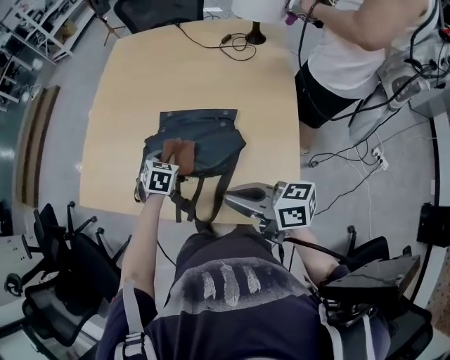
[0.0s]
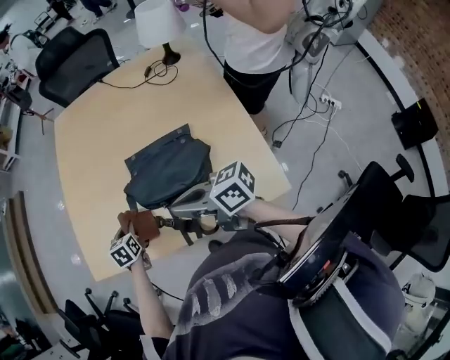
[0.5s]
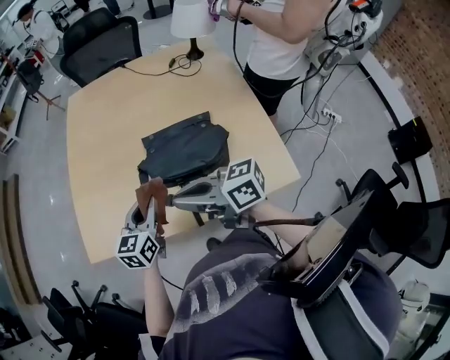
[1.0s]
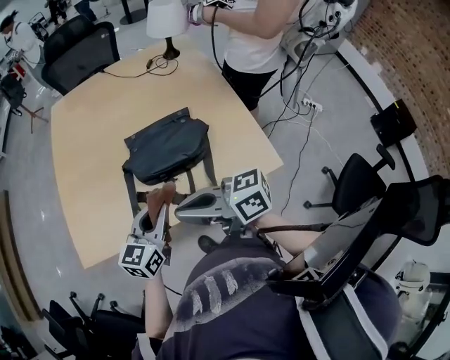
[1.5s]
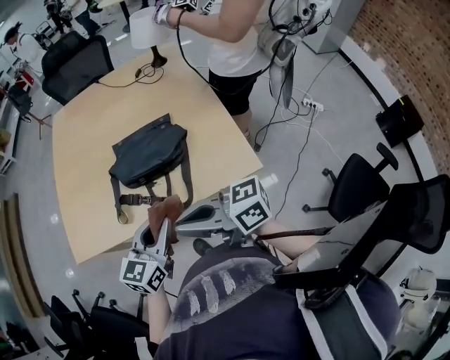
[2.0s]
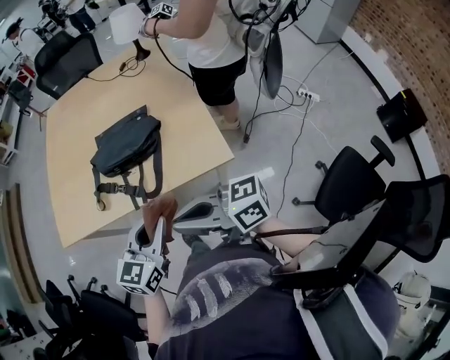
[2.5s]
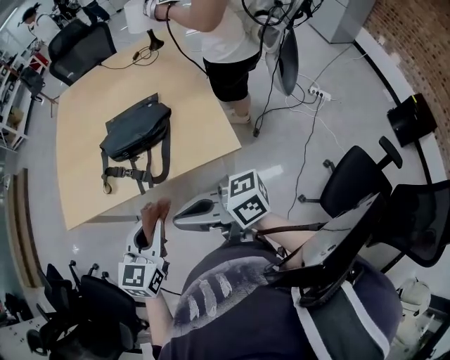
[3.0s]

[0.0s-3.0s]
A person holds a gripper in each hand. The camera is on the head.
0.0s to 1.5s: The right gripper ends up about 20 cm from where it was. Meanwhile the left gripper moves approximately 25 cm, and angles its fingers upward, by roughly 40 degrees.
1.5s to 3.0s: The left gripper is displaced backward by approximately 25 cm. The right gripper shifts approximately 25 cm backward and to the right.

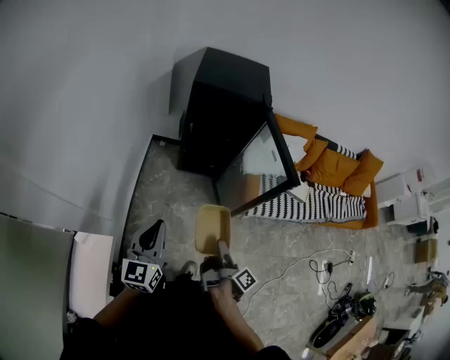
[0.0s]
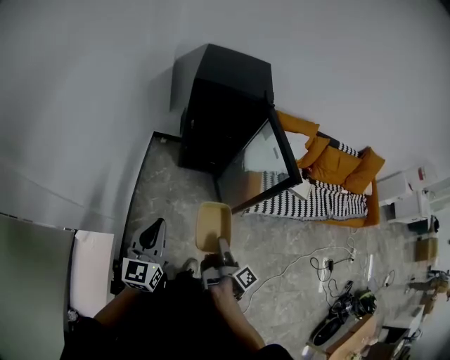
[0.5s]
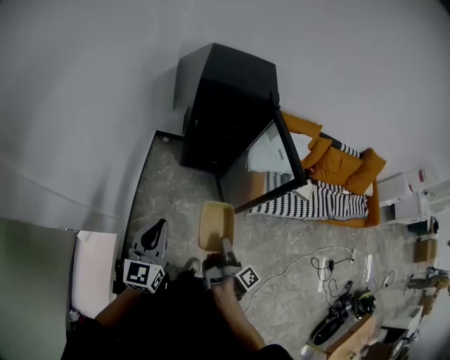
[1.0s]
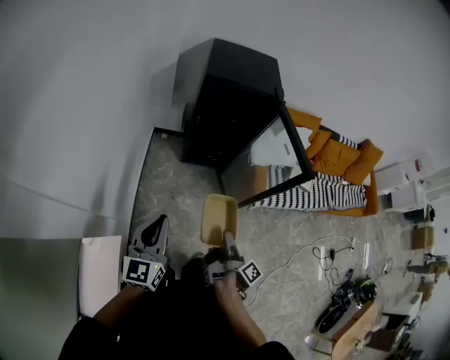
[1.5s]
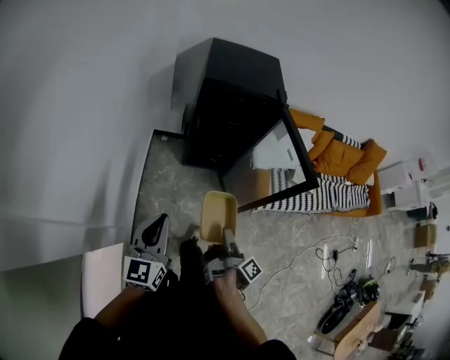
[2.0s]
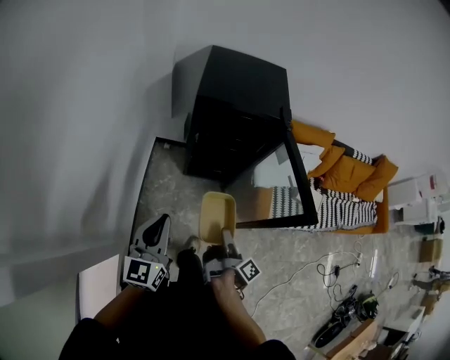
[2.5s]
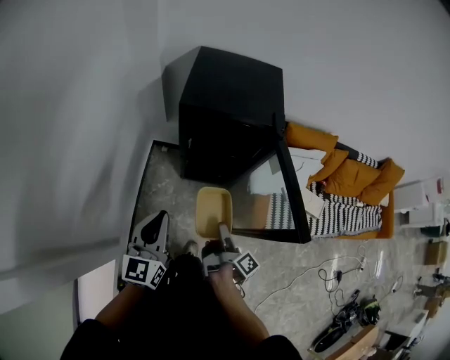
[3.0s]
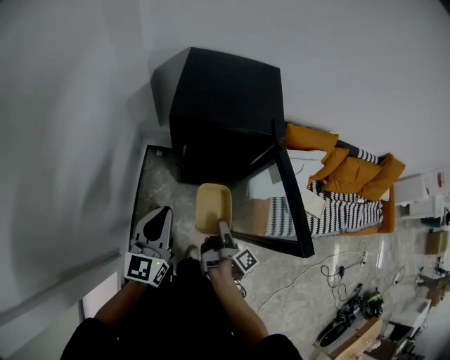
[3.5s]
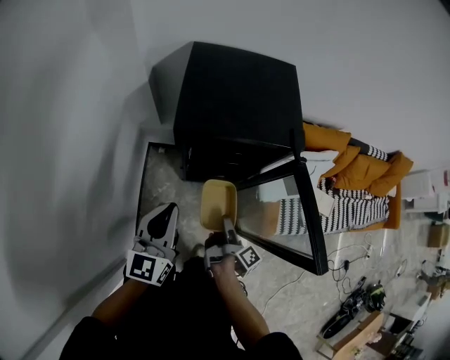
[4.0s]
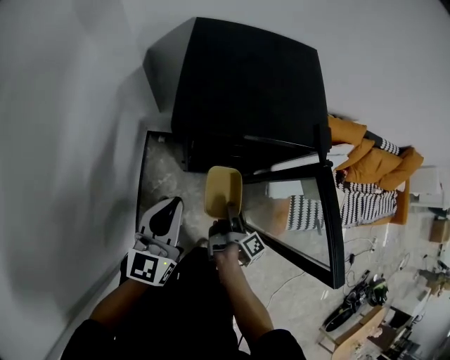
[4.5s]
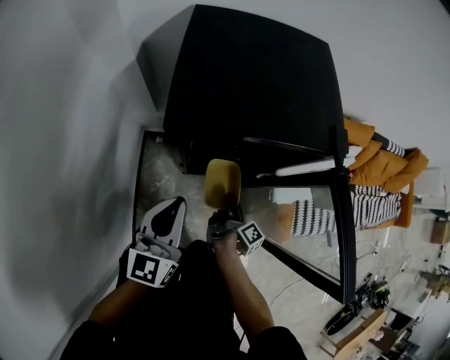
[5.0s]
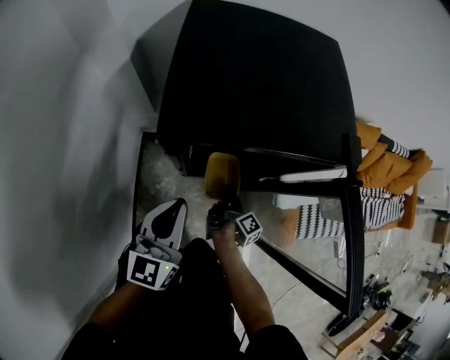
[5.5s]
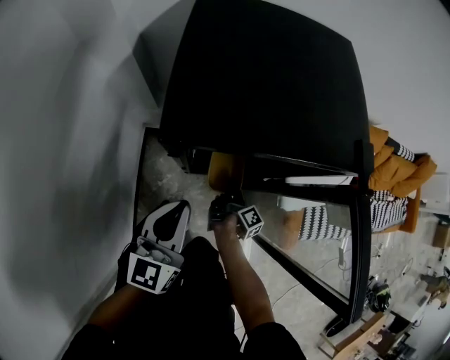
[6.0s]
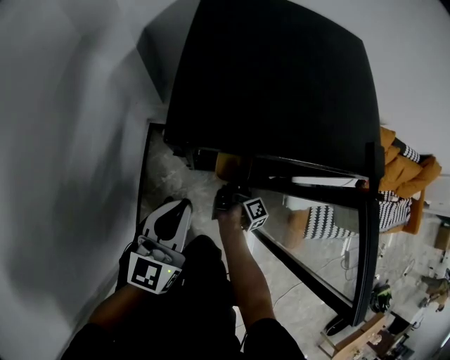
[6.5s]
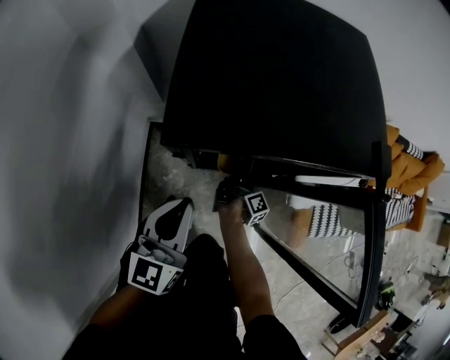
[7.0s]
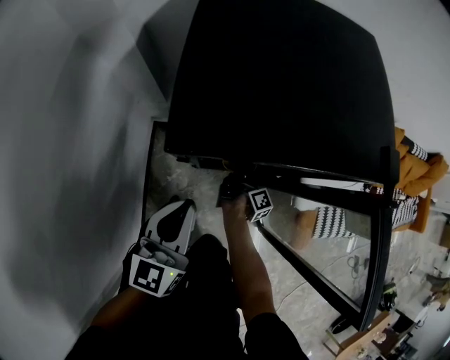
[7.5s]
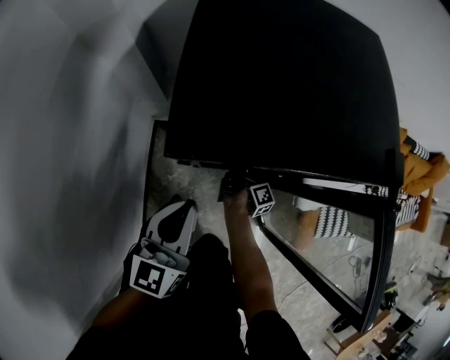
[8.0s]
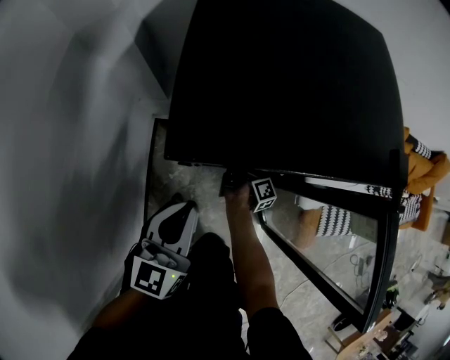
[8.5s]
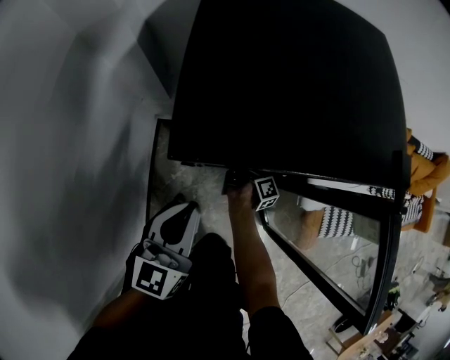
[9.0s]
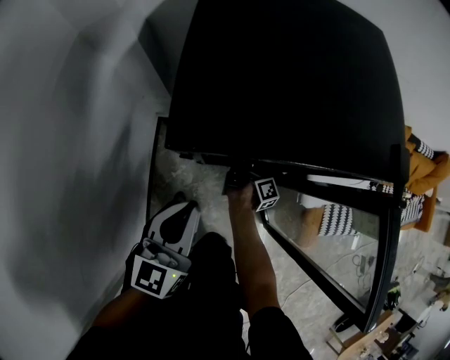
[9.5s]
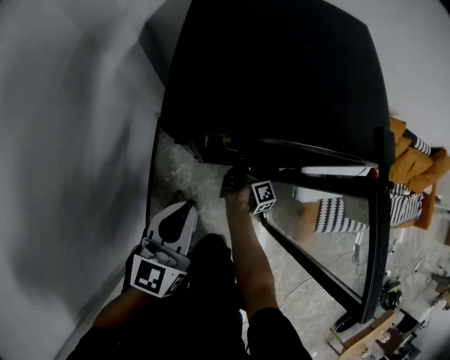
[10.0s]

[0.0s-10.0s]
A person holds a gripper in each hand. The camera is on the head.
0.0s to 2.0s: The left gripper changes place by roughly 10 cm.
2.0s to 4.0s: The left gripper ends up approximately 40 cm from where it was.
4.0s to 6.0s: The left gripper shifts some 20 cm downward.

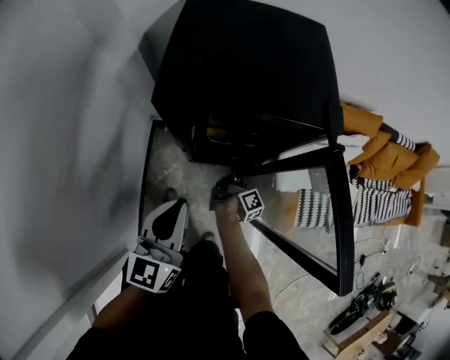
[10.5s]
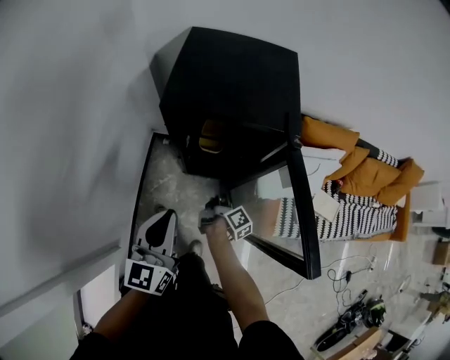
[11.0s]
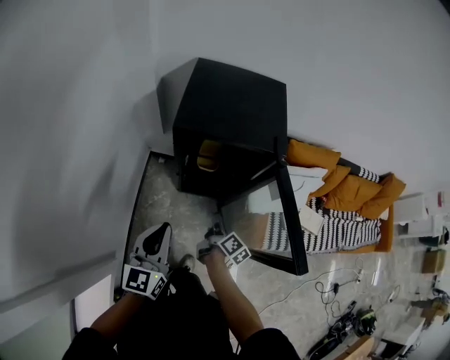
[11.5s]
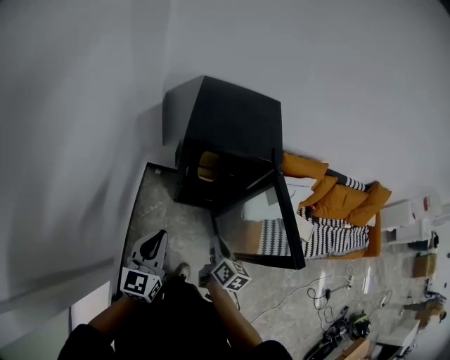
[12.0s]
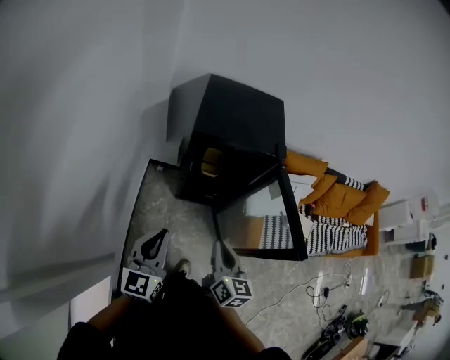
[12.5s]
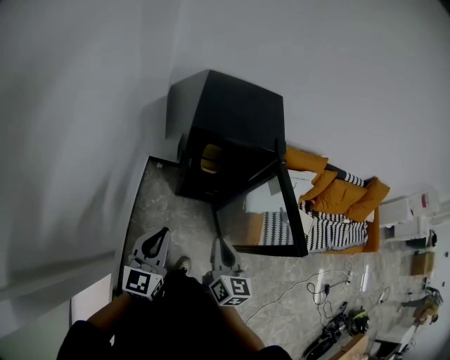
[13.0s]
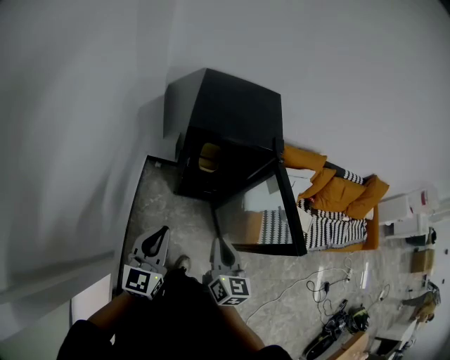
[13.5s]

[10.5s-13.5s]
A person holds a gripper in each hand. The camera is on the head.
10.5s to 12.0s: The left gripper shifts by approximately 20 cm.

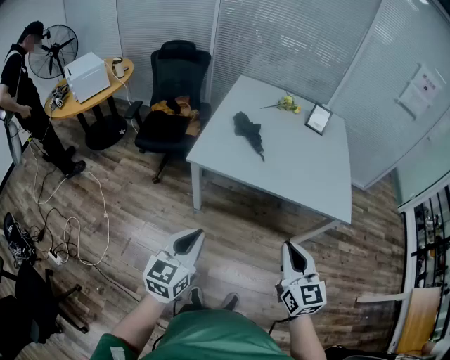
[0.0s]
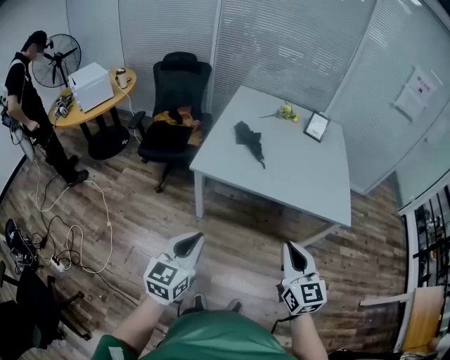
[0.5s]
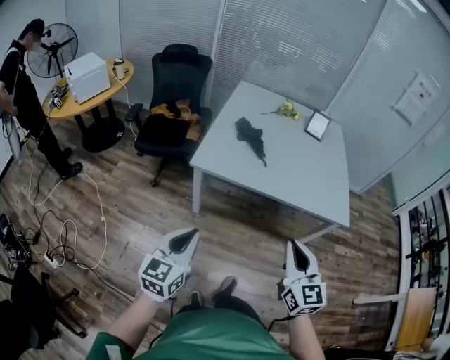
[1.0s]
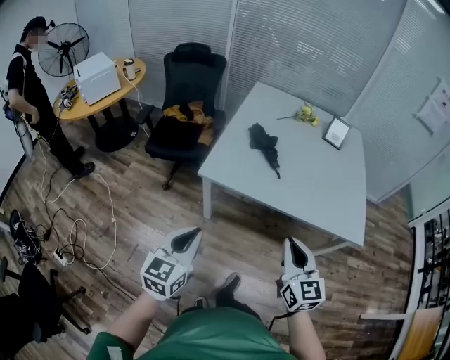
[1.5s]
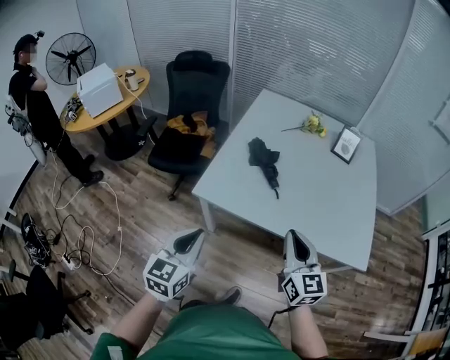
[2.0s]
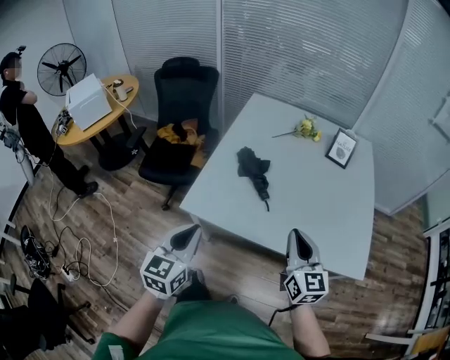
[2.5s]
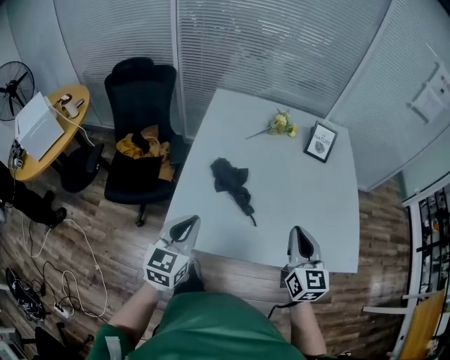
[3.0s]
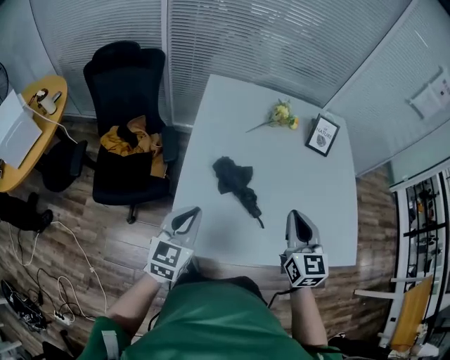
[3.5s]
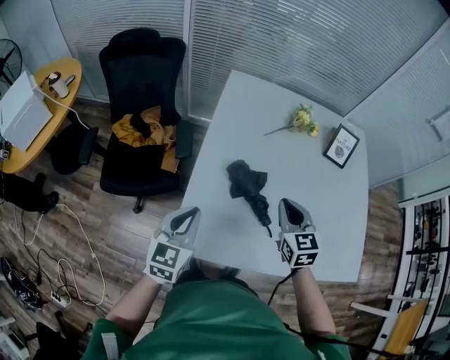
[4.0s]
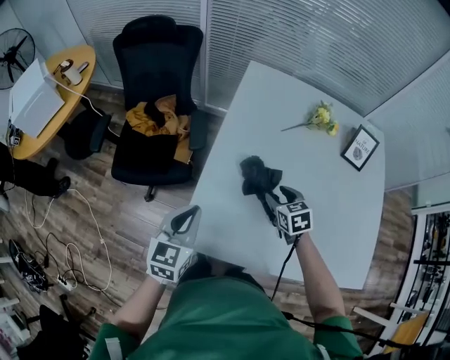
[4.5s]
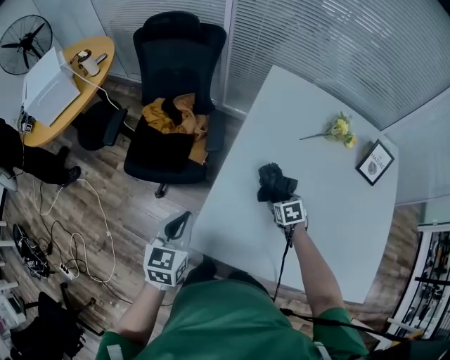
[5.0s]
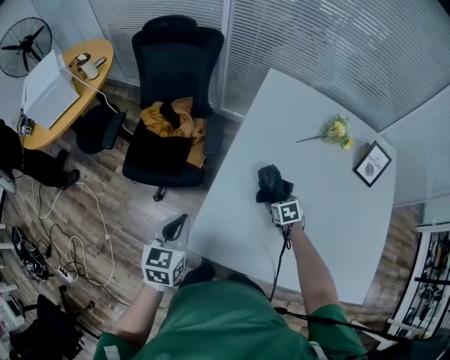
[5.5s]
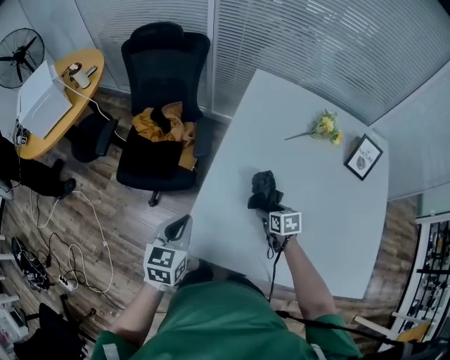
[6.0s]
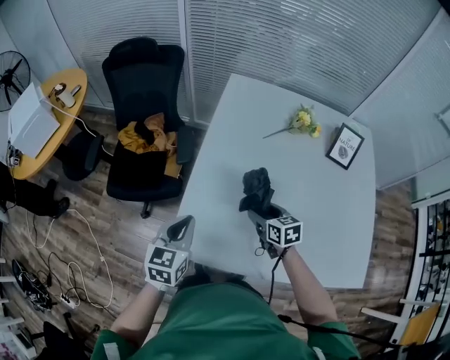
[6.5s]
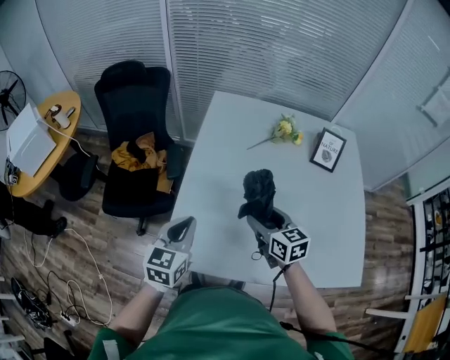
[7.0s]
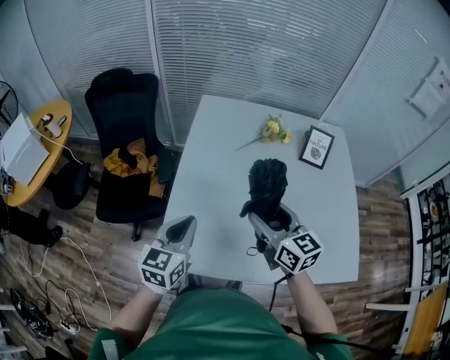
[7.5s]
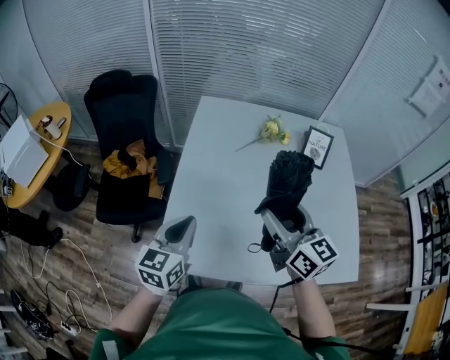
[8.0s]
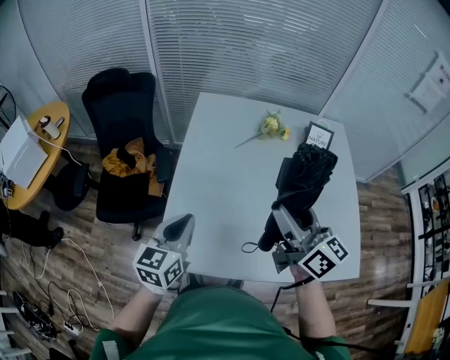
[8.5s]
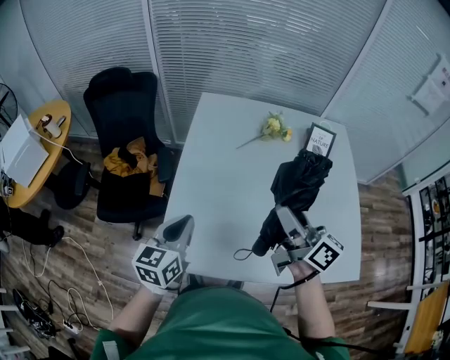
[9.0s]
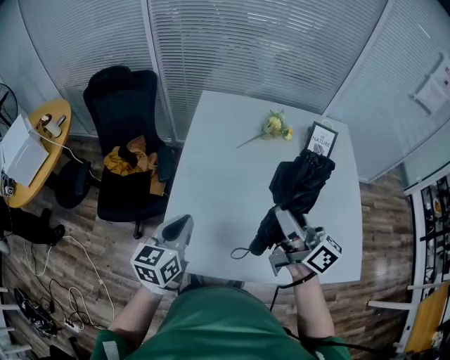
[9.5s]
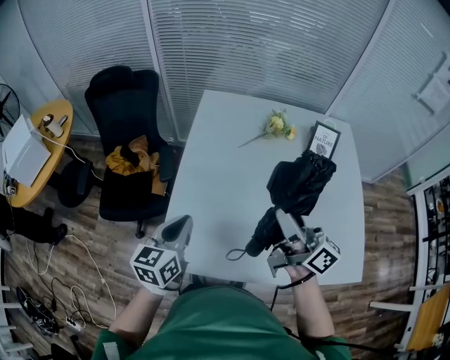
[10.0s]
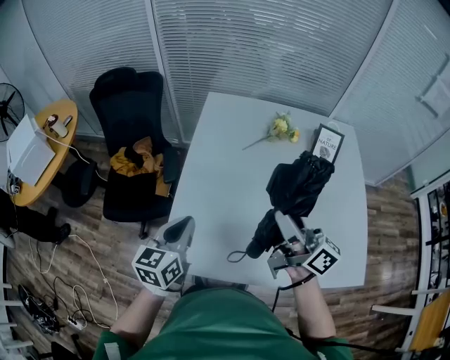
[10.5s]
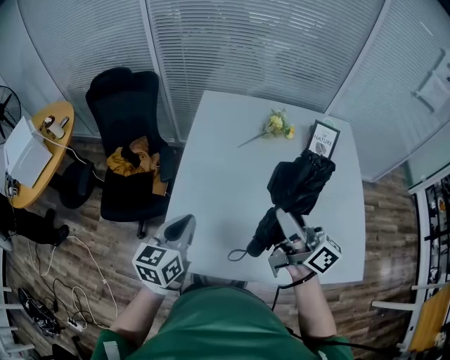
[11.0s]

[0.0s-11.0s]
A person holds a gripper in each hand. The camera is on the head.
0.0s to 2.0s: Both grippers travel together forward, approximately 25 cm.
2.0s to 3.5s: The grippers both shift forward by approximately 30 cm. The right gripper rotates about 20 degrees.
3.5s to 5.5s: The left gripper shifts about 15 cm to the left and downward, and turns by approximately 30 degrees. The right gripper moves downward and forward, about 35 cm, tips its fingers downward by some 50 degrees, and opens.
5.5s to 7.5s: The left gripper travels to the right and upward by approximately 20 cm, and changes its angle by some 20 degrees; the right gripper is displaced upward by about 35 cm, and angles its fingers upward, by some 50 degrees.
7.5s to 9.0s: The right gripper heads upward, covering some 5 cm, and turns by approximately 40 degrees.
9.0s to 11.0s: The grippers make only small movements.
